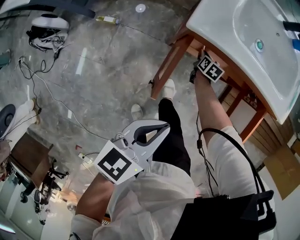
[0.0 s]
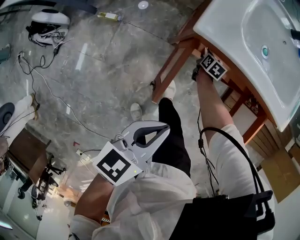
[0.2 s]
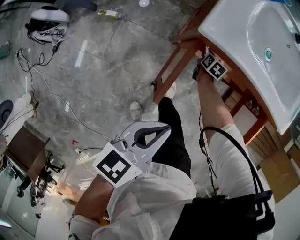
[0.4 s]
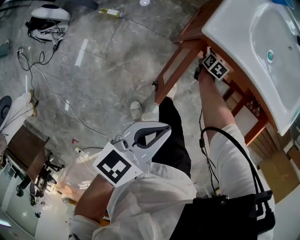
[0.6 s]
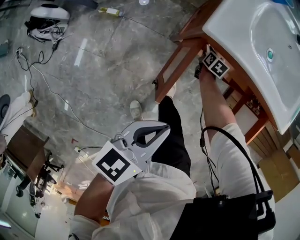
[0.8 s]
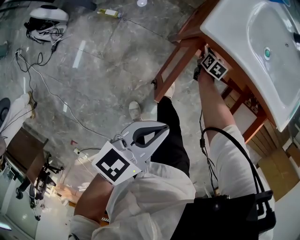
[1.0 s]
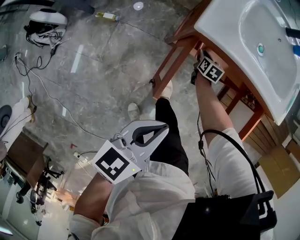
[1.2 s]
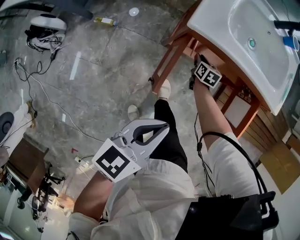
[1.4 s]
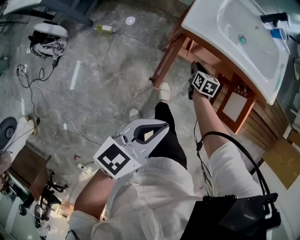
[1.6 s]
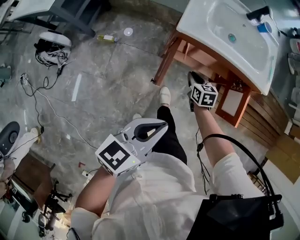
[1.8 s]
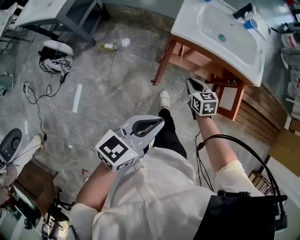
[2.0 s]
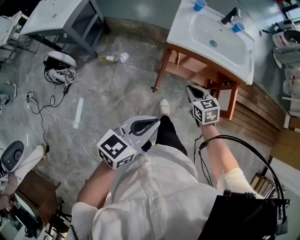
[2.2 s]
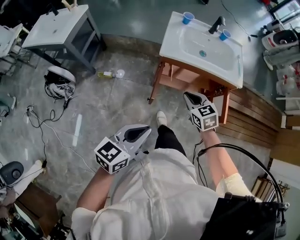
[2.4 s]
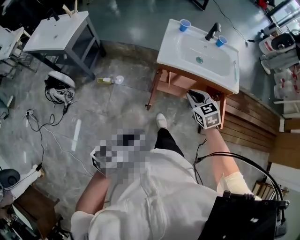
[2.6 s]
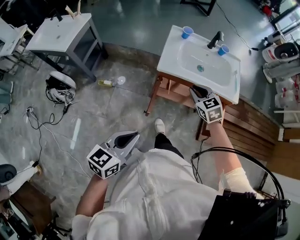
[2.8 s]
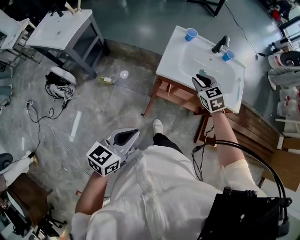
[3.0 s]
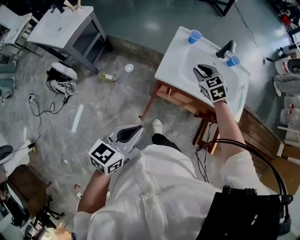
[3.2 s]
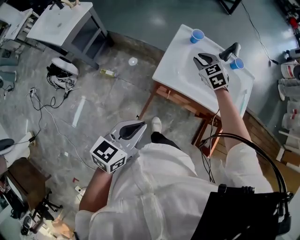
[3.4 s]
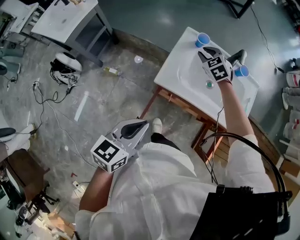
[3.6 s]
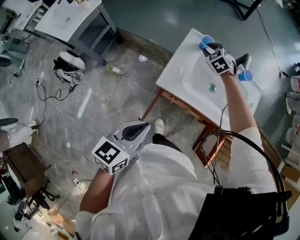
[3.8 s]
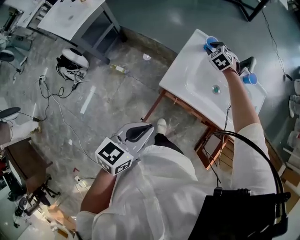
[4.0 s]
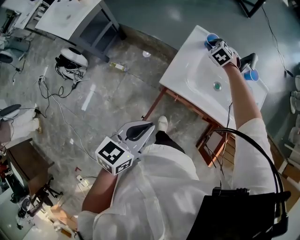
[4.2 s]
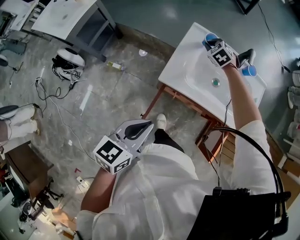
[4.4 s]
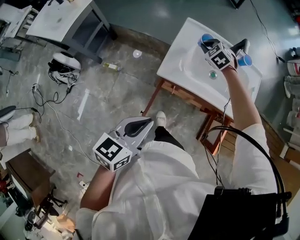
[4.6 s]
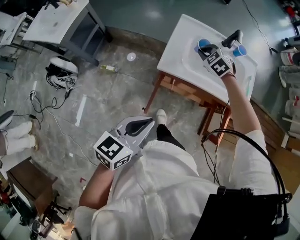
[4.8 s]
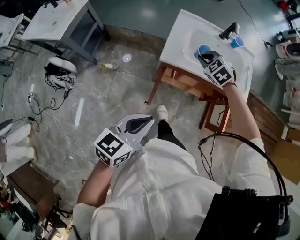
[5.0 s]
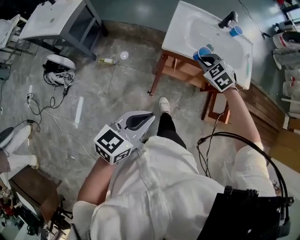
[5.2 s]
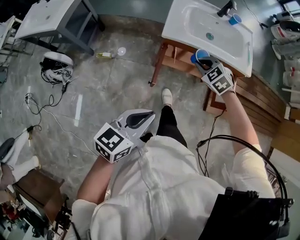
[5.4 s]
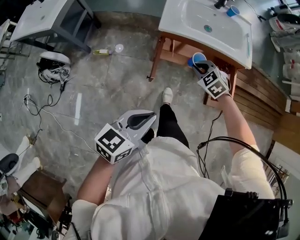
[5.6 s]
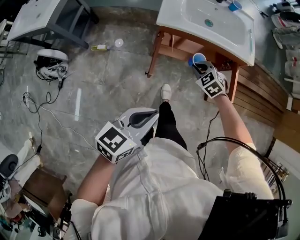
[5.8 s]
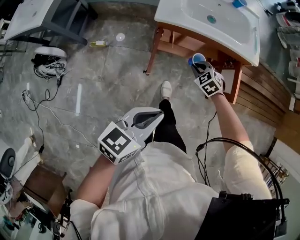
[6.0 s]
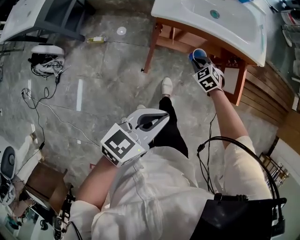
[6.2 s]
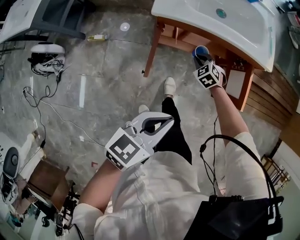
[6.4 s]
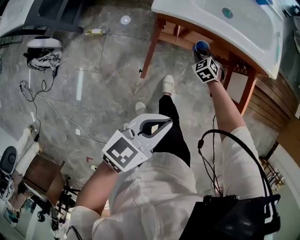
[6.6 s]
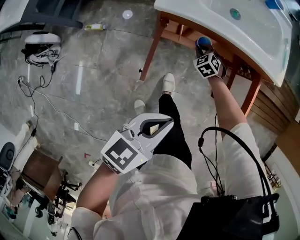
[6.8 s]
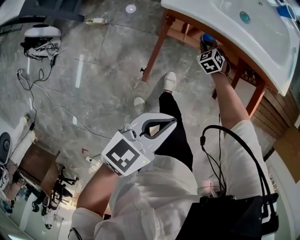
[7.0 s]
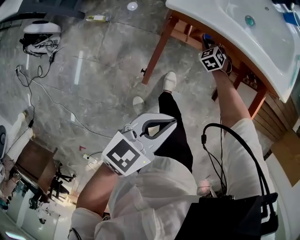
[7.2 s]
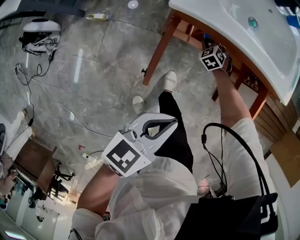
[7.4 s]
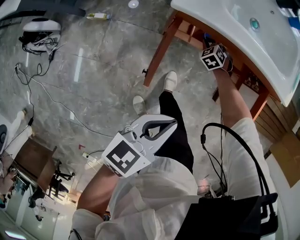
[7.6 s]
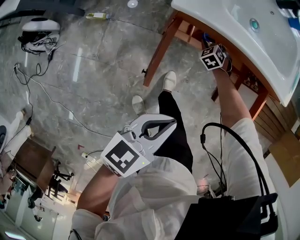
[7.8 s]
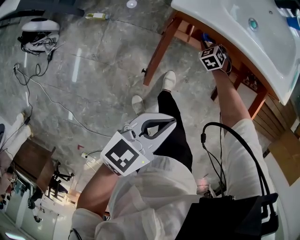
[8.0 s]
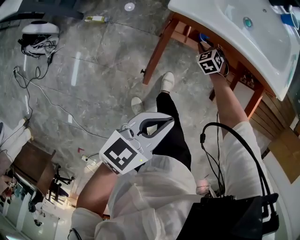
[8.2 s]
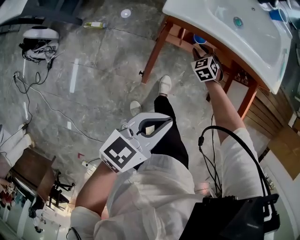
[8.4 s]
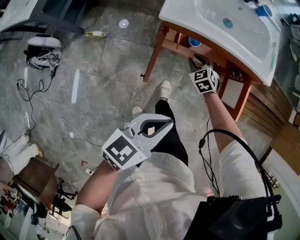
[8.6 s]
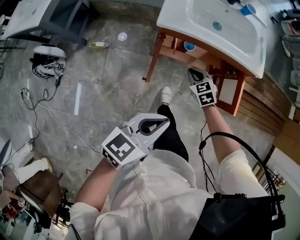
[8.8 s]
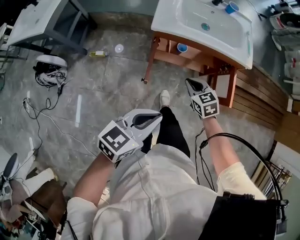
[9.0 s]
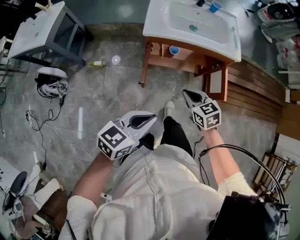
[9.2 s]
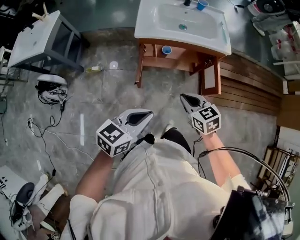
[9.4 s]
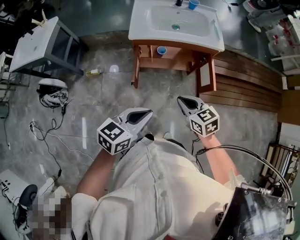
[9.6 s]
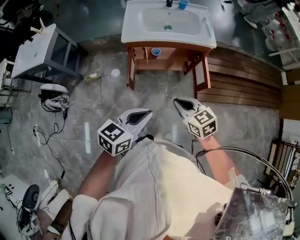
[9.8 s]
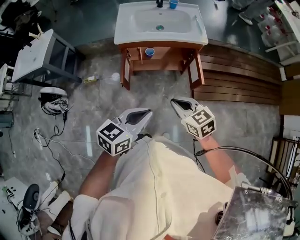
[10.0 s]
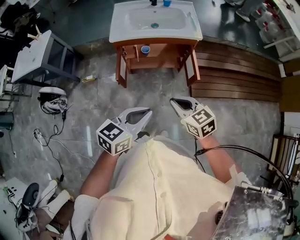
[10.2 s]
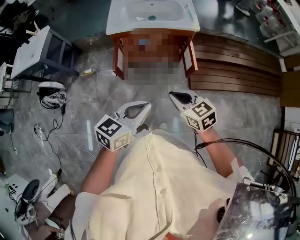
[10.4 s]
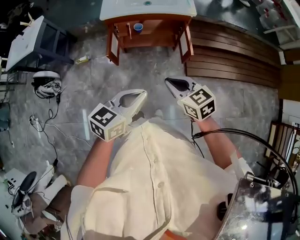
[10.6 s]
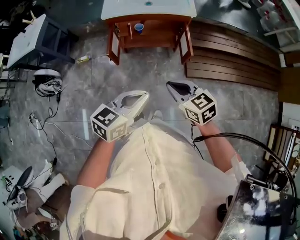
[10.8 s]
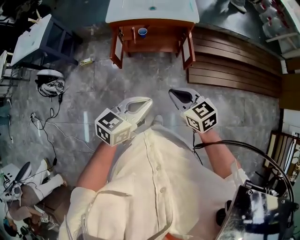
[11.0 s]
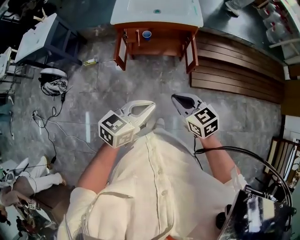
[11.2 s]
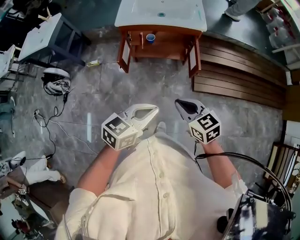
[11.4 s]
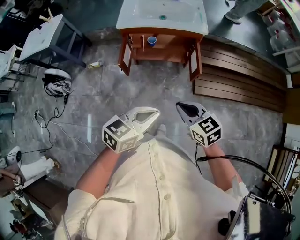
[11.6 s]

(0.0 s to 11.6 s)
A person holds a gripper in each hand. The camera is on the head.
0.0 s - 1.4 s: The right gripper shifts by approximately 5 cm.
1.4 s - 2.8 s: The right gripper shifts some 40 cm upward, and rolls counterclockwise, seen from behind, by about 40 degrees. The left gripper moves upward and backward, about 15 cm.
2.8 s - 4.4 s: The right gripper is displaced forward by some 40 cm, and swivels approximately 30 degrees. The left gripper shifts roughly 20 cm forward.
4.4 s - 5.8 s: The left gripper travels backward by approximately 20 cm, and rotates roughly 20 degrees. Meanwhile the right gripper is displaced backward by roughly 40 cm.
5.8 s - 7.2 s: The left gripper goes roughly 20 cm downward and forward; the right gripper travels downward and forward by some 35 cm.
7.2 s - 8.8 s: The right gripper is displaced upward and backward by about 25 cm, and turns by some 30 degrees; the left gripper goes some 10 cm upward and backward.
8.8 s - 10.2 s: The left gripper heads to the right, backward and upward, covering approximately 20 cm, while the right gripper shifts about 40 cm backward, upward and to the right, and changes its angle by some 30 degrees.
10.2 s - 11.6 s: Both grippers travel together backward and to the right, about 10 cm.

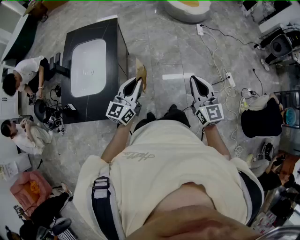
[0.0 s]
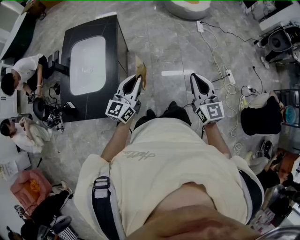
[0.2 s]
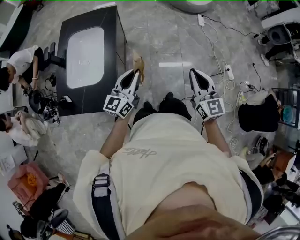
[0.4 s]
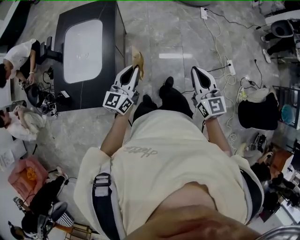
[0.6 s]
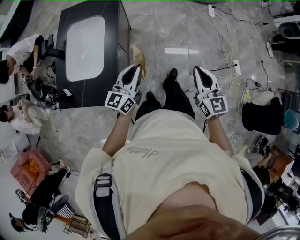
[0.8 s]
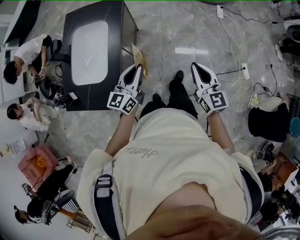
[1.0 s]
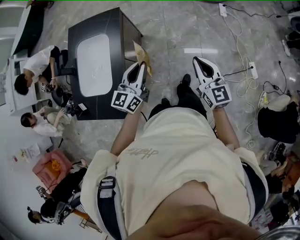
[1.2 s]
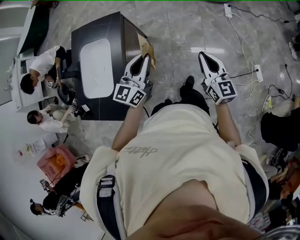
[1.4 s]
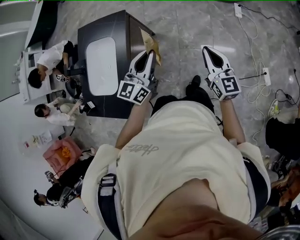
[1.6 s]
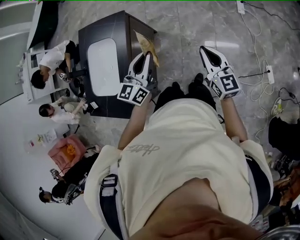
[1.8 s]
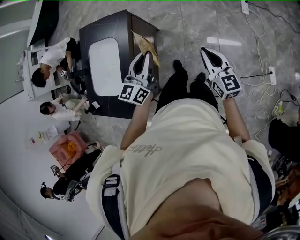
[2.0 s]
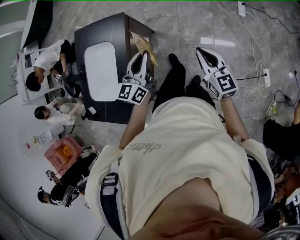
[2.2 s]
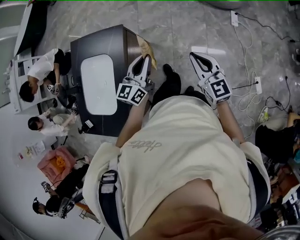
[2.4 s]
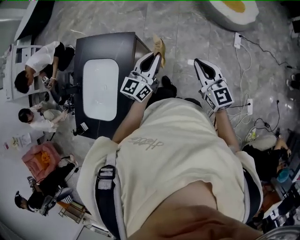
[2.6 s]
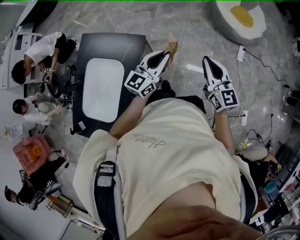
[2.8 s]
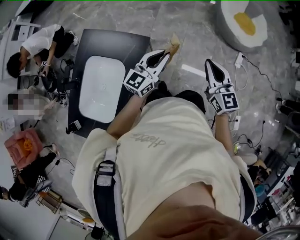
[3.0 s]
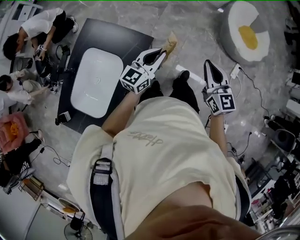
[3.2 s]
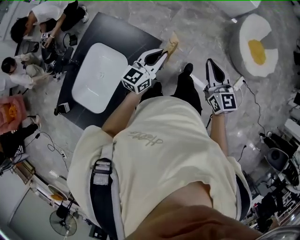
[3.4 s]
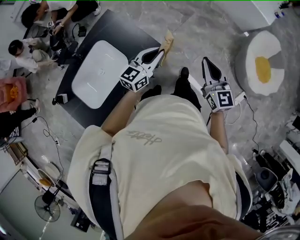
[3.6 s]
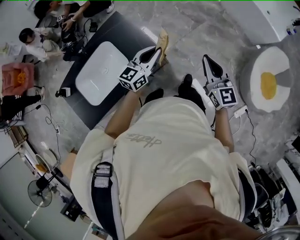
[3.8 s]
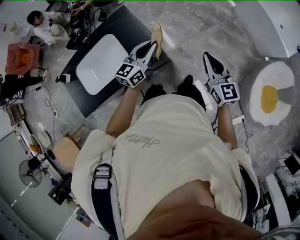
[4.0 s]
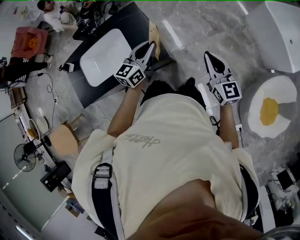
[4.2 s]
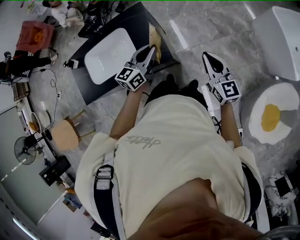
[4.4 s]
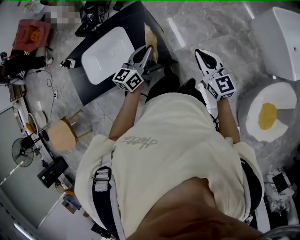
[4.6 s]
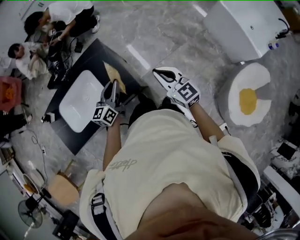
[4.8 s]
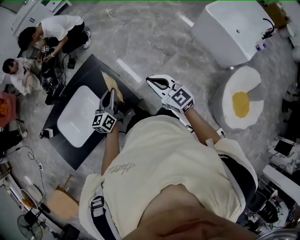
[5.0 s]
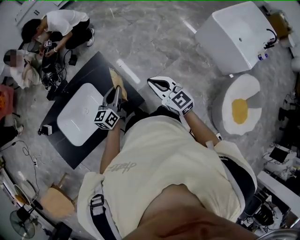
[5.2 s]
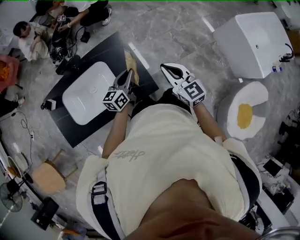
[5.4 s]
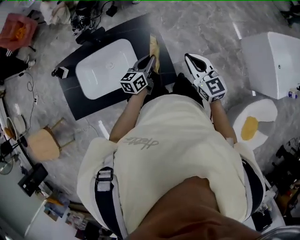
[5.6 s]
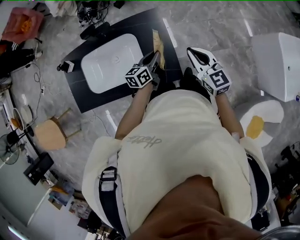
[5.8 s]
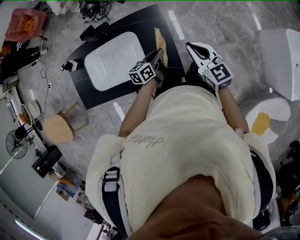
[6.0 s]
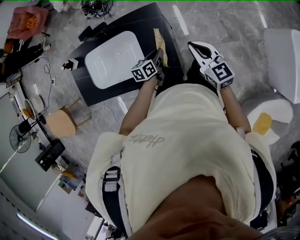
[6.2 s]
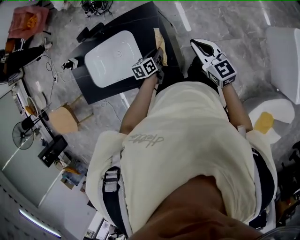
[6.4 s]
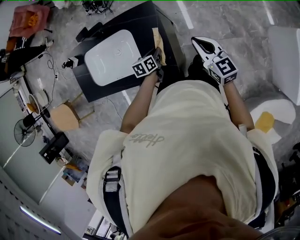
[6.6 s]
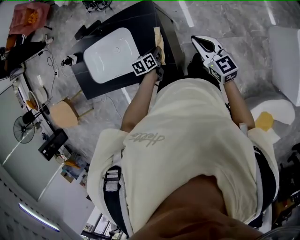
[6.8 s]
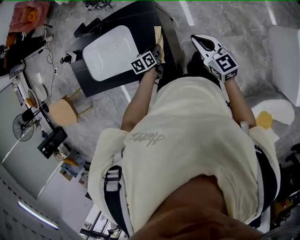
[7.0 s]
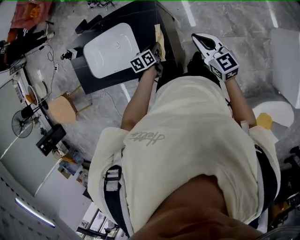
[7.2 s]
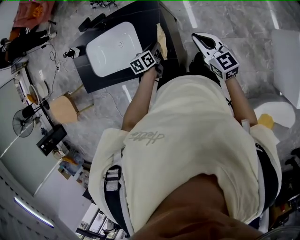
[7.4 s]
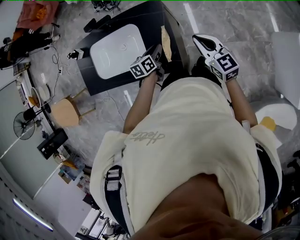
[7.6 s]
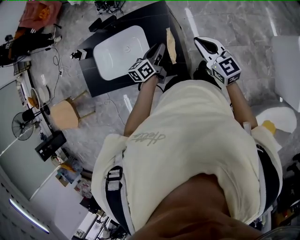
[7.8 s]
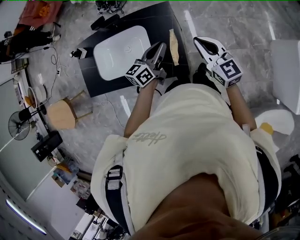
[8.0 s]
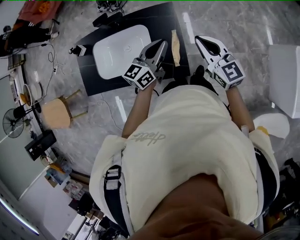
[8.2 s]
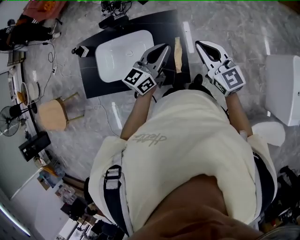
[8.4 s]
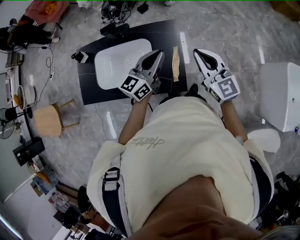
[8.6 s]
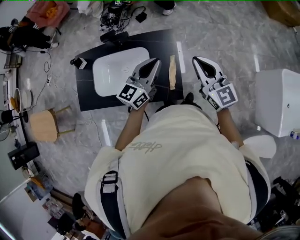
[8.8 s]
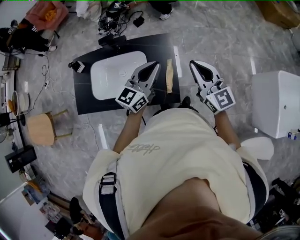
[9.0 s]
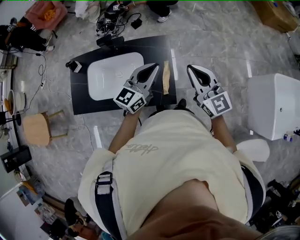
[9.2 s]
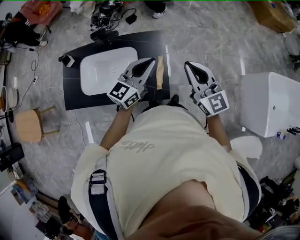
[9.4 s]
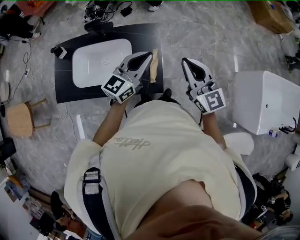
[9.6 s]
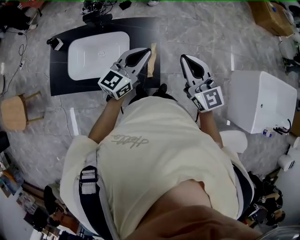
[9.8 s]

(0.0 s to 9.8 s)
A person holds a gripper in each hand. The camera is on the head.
0.0 s - 1.4 s: The right gripper goes roughly 30 cm forward. The left gripper is displaced forward and to the right by some 30 cm.
1.4 s - 2.8 s: The right gripper shifts approximately 35 cm forward and to the left, while the left gripper shifts some 30 cm forward.
2.8 s - 4.2 s: The left gripper moves approximately 25 cm, and turns by about 60 degrees; the right gripper moves approximately 35 cm, and rotates approximately 50 degrees.
4.2 s - 5.6 s: The right gripper moves to the left and forward, roughly 25 cm. Meanwhile the left gripper is displaced to the left, forward and downward by roughly 20 cm, and rotates approximately 20 degrees.
5.6 s - 7.0 s: The left gripper travels downward by approximately 15 cm, and tips its fingers downward by some 30 degrees. The right gripper travels to the right, downward and forward by approximately 15 cm.
7.0 s - 8.4 s: The left gripper is displaced upward by some 30 cm, and angles its fingers upward, by approximately 50 degrees. The right gripper goes approximately 20 cm upward and to the left.
8.4 s - 9.8 s: The right gripper ends up roughly 5 cm from where it was.

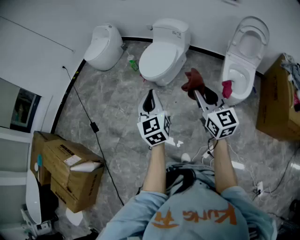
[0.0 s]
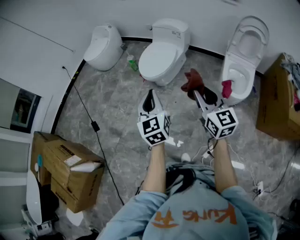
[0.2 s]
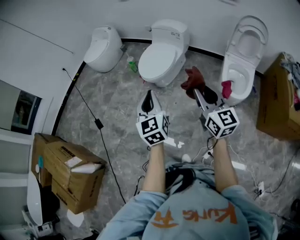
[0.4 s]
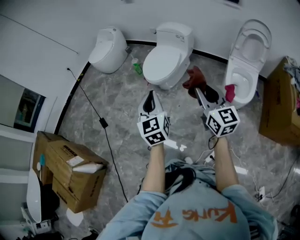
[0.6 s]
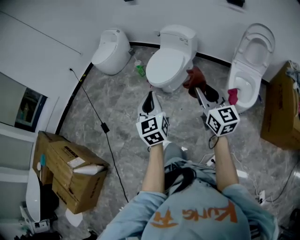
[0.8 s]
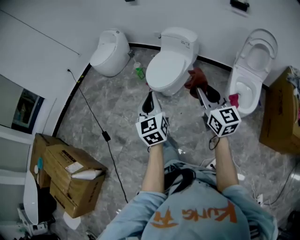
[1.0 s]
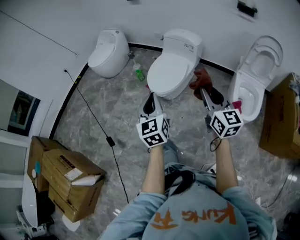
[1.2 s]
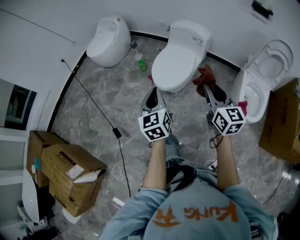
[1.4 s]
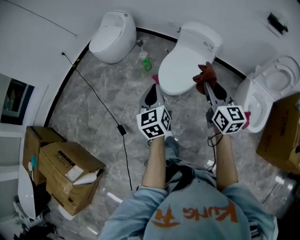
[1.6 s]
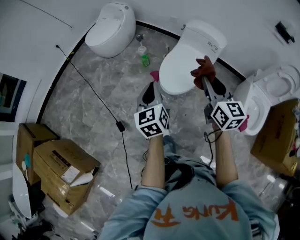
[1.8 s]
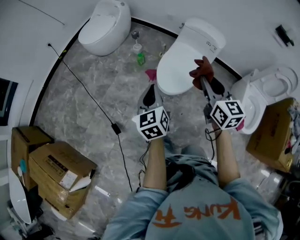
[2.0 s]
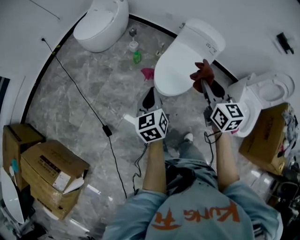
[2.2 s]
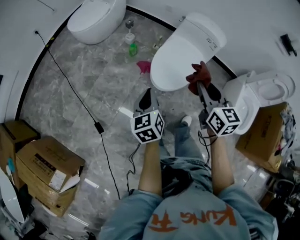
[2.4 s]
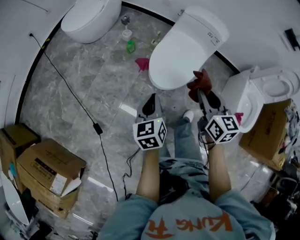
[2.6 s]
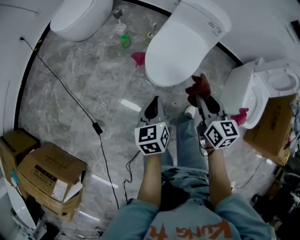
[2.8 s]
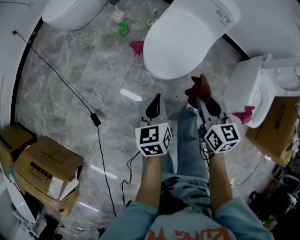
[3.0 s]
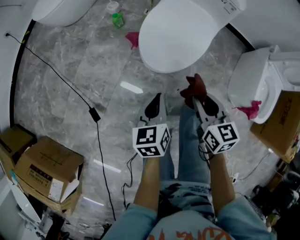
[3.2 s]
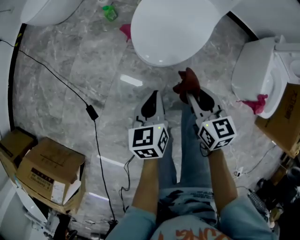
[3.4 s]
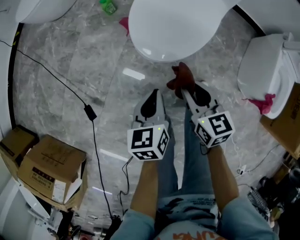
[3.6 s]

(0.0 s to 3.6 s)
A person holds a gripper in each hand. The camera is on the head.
0.0 s - 1.8 s: The two grippers travel together, forward and to the left, approximately 40 cm.
1.8 s - 3.6 s: Both grippers travel together downward, some 50 cm. The left gripper changes its angle by some 30 degrees. Meanwhile the right gripper turns by approximately 30 degrees.
